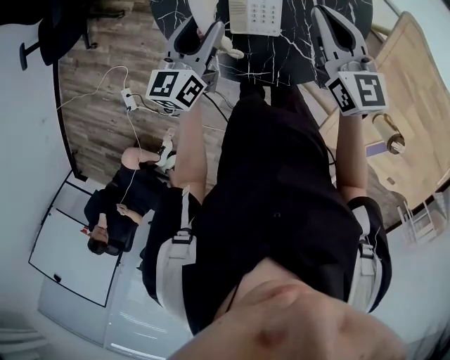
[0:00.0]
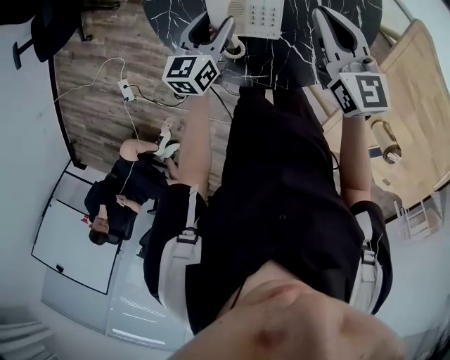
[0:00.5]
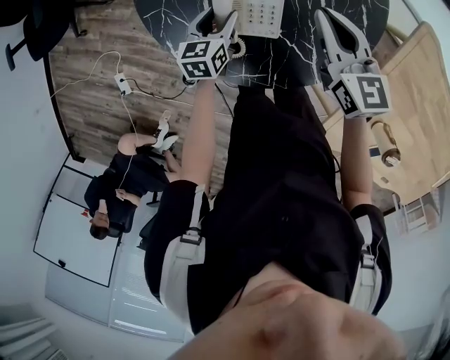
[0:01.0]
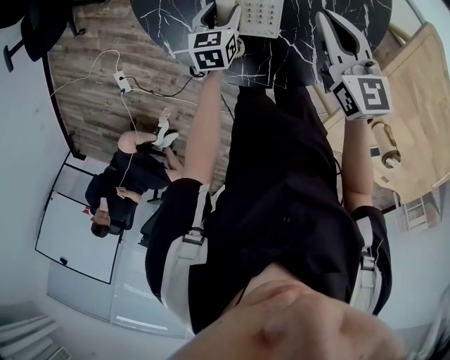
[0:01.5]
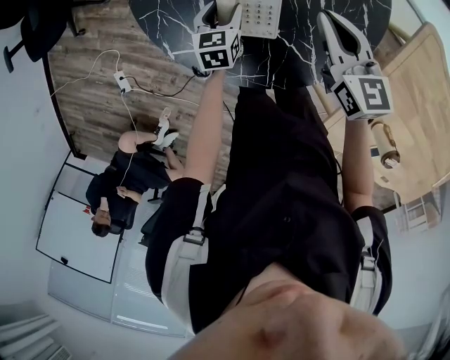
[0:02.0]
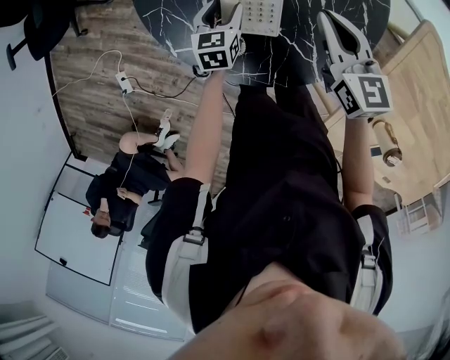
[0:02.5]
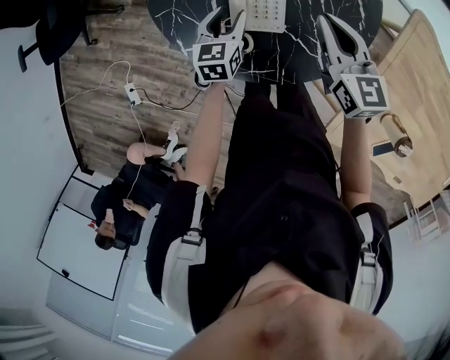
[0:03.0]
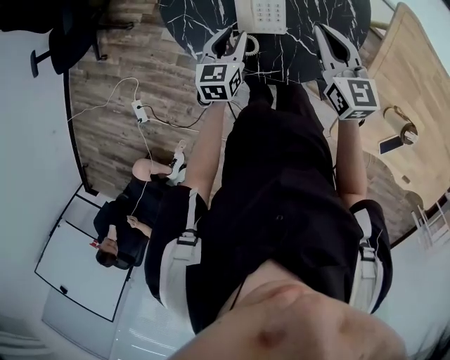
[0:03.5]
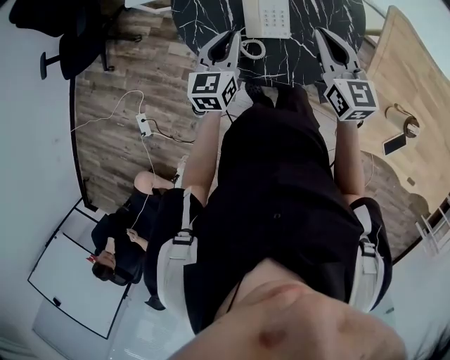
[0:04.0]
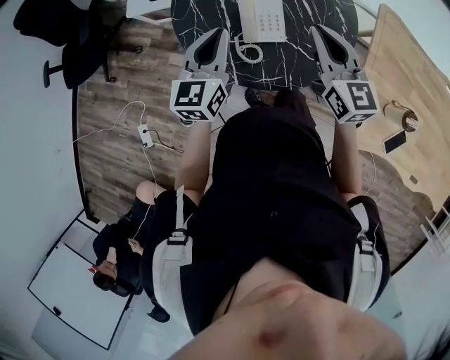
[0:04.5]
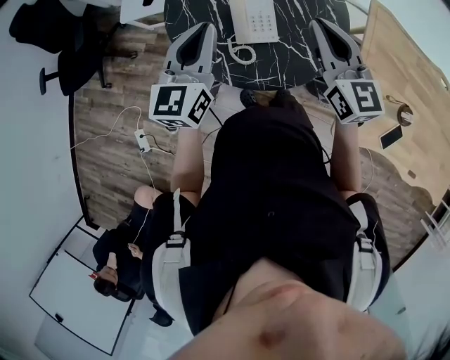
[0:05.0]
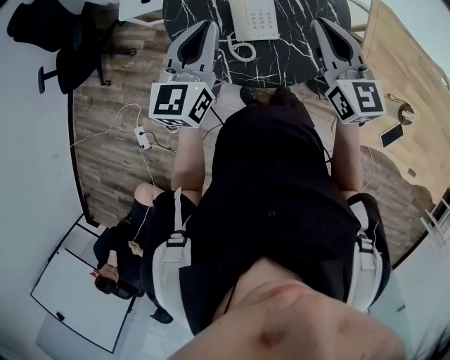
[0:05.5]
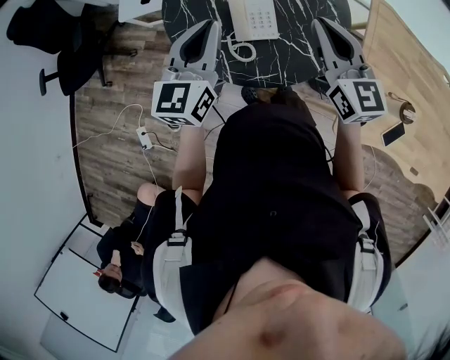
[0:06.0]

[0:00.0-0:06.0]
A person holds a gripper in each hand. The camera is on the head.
0:00.0 to 0:02.0: The right gripper shifts about 10 cm downward. Meanwhile the left gripper goes approximately 25 cm downward, and angles its fingers downward, by roughly 30 degrees.
0:02.0 to 0:04.0: The left gripper shifts roughly 25 cm upward and backward, turns by roughly 30 degrees, and closes. Meanwhile the right gripper heads backward, upward and to the left, covering roughly 20 cm.
0:04.0 to 0:06.0: The left gripper is displaced upward by about 15 cm, while the right gripper goes approximately 10 cm upward.

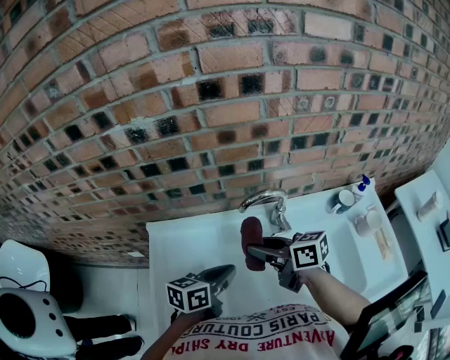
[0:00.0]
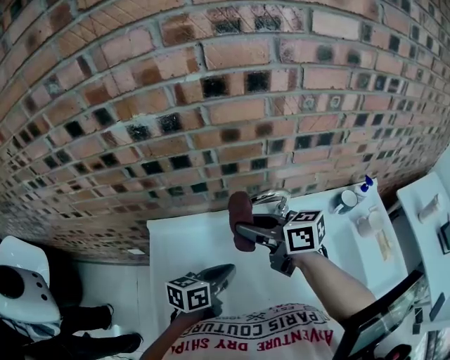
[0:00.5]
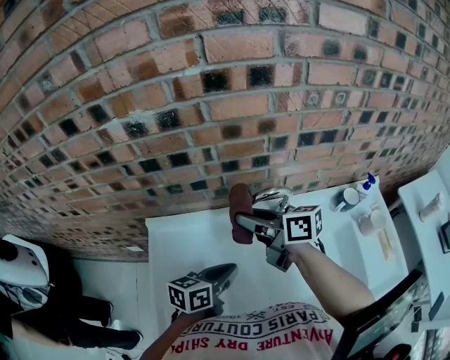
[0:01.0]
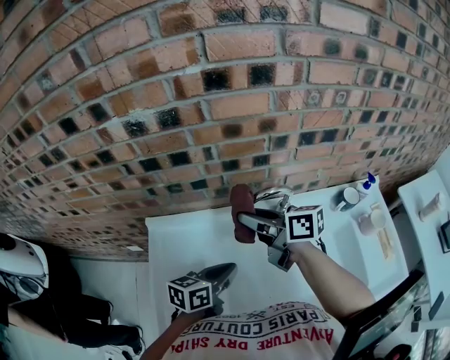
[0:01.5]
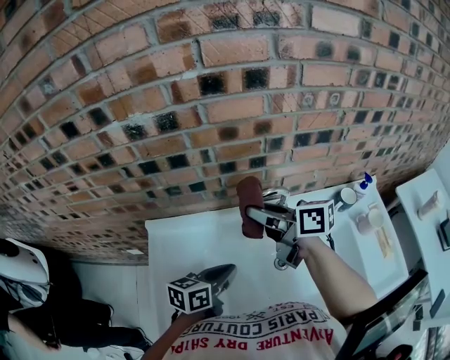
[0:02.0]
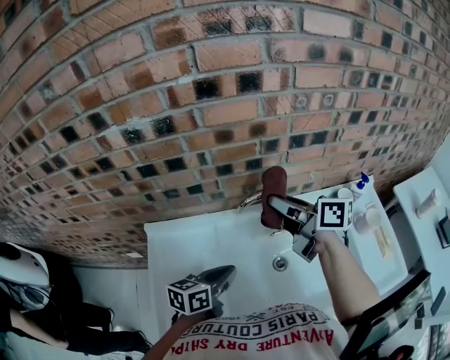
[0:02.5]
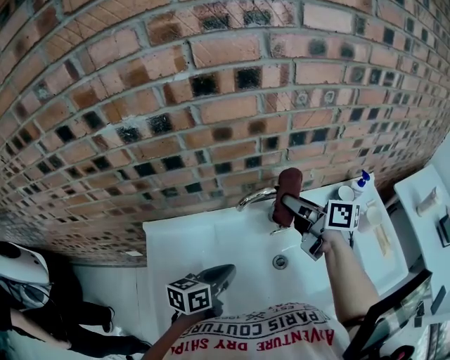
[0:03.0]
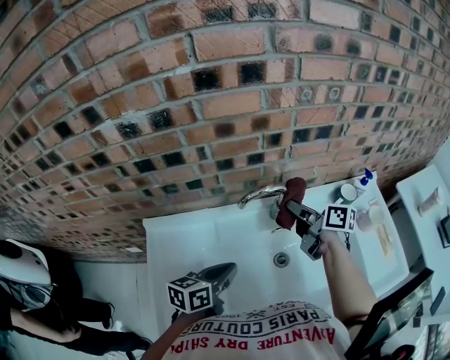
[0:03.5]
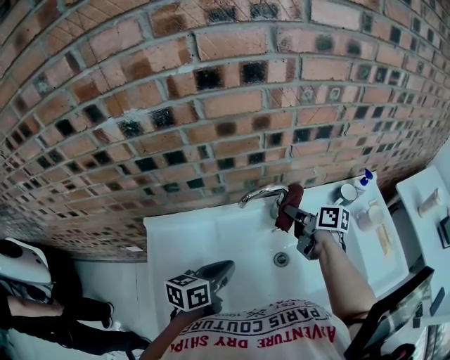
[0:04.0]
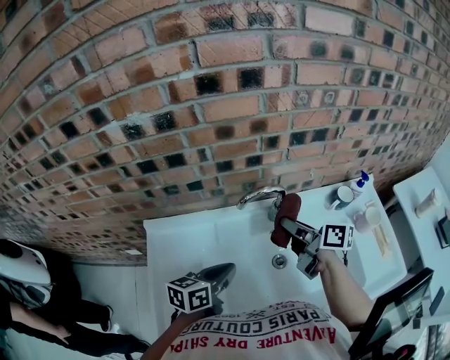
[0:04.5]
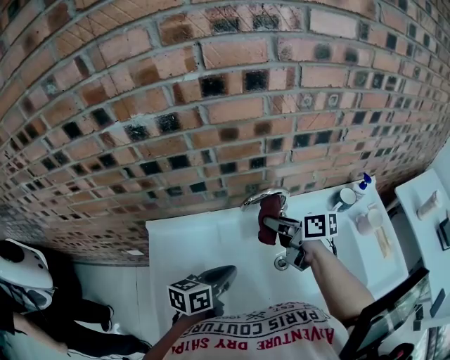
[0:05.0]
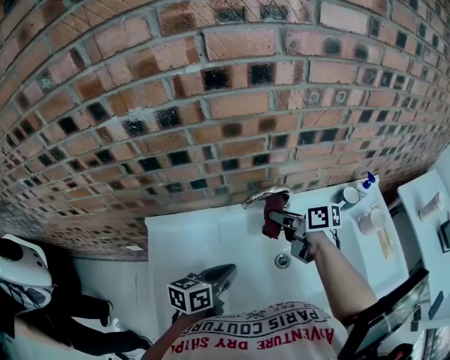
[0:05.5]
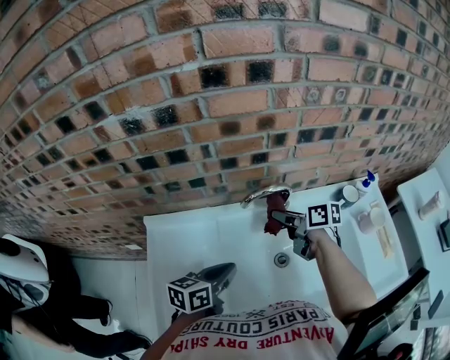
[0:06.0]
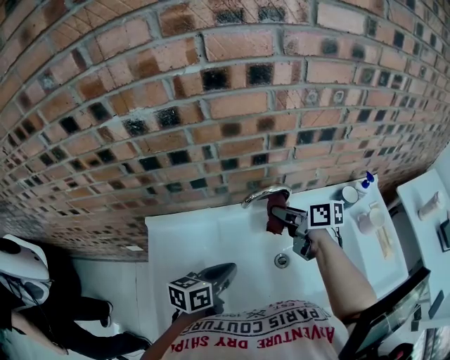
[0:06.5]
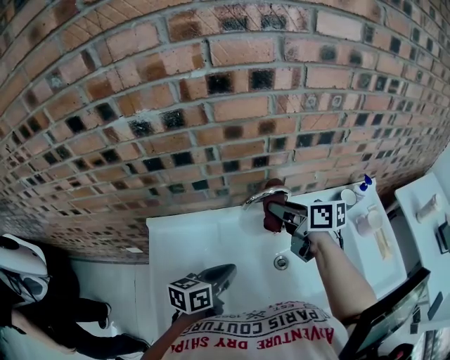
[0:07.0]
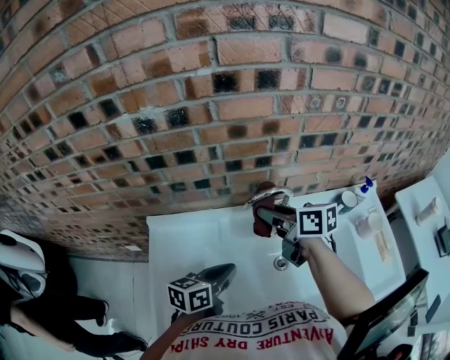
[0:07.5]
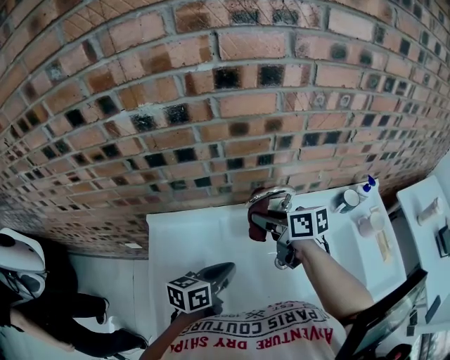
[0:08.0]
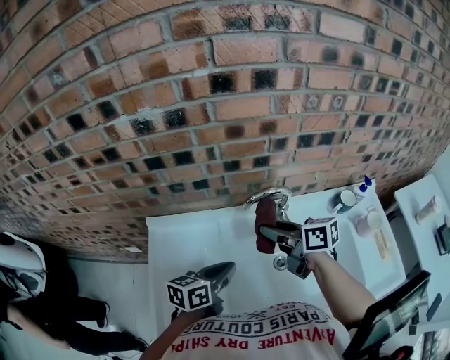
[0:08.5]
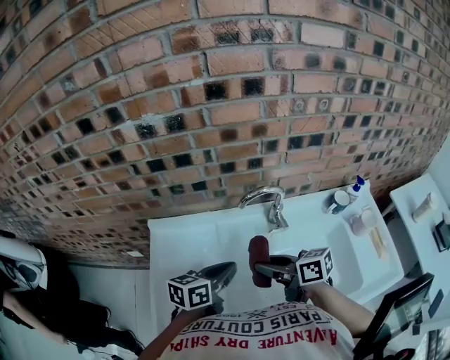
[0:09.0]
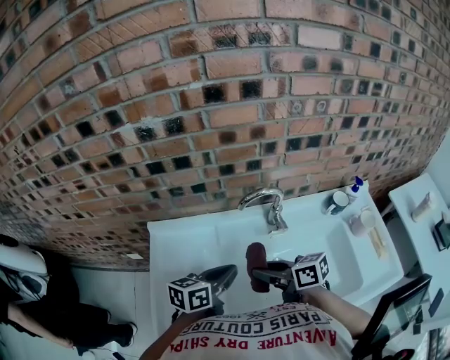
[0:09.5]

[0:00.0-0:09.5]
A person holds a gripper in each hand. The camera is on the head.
0:00.0 to 0:02.0: The right gripper goes about 10 cm upward and forward.
0:02.0 to 0:04.0: The right gripper goes some 20 cm downward and to the right, and rotates roughly 30 degrees.
0:04.0 to 0:05.5: The right gripper moves to the left, about 5 cm.
0:05.5 to 0:07.5: The right gripper shifts approximately 5 cm upward.
0:07.5 to 0:09.5: The right gripper goes about 15 cm backward and downward.

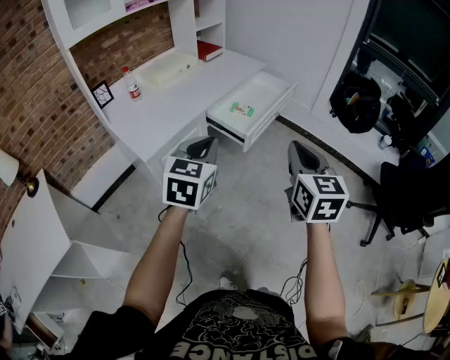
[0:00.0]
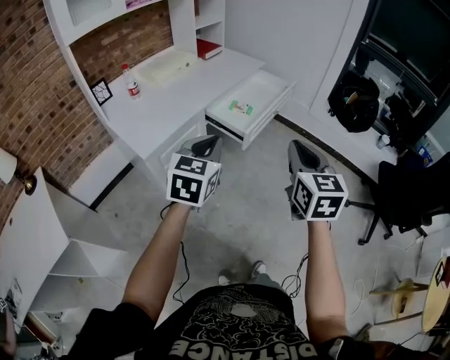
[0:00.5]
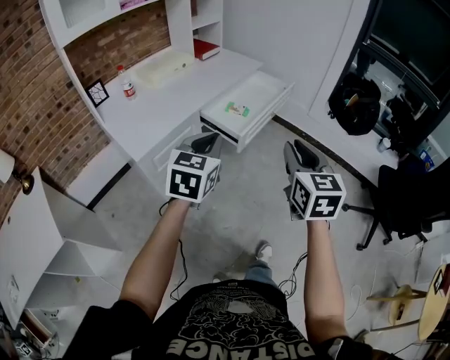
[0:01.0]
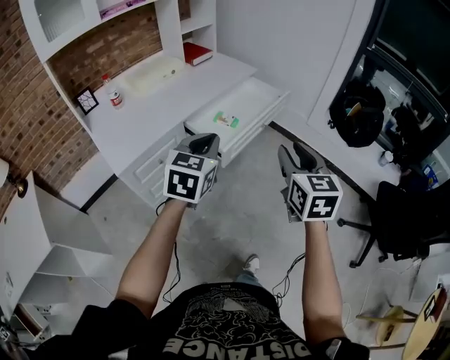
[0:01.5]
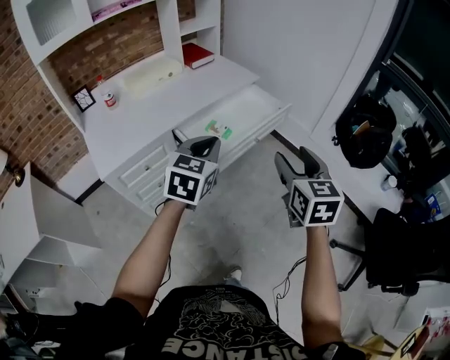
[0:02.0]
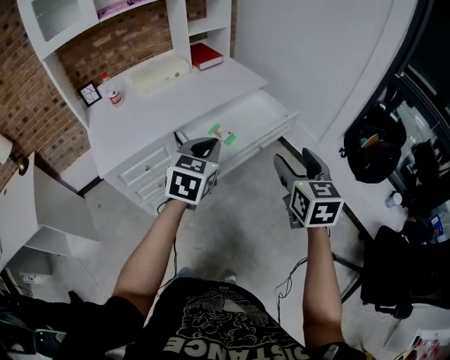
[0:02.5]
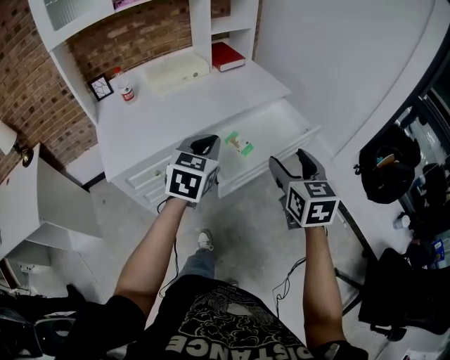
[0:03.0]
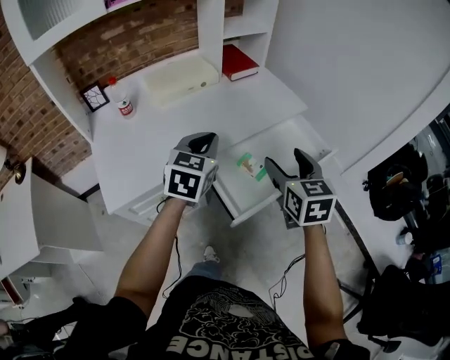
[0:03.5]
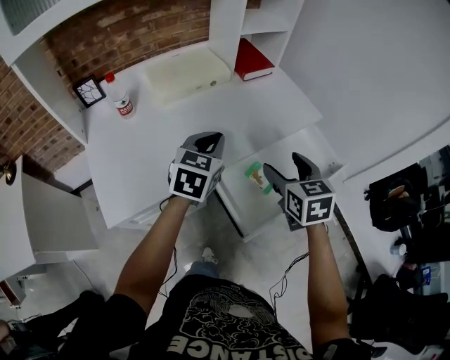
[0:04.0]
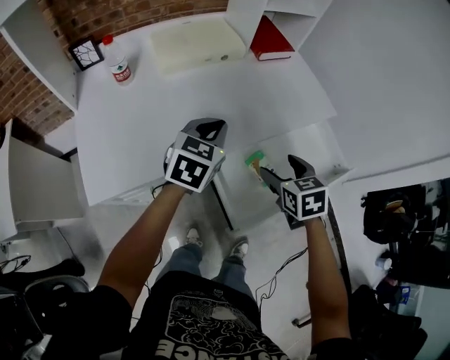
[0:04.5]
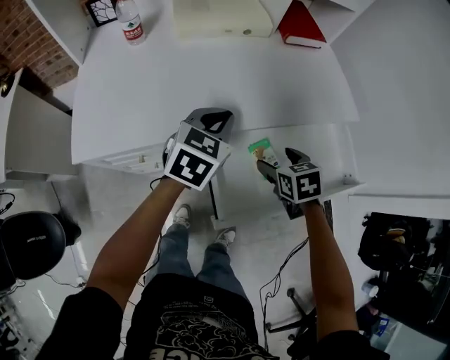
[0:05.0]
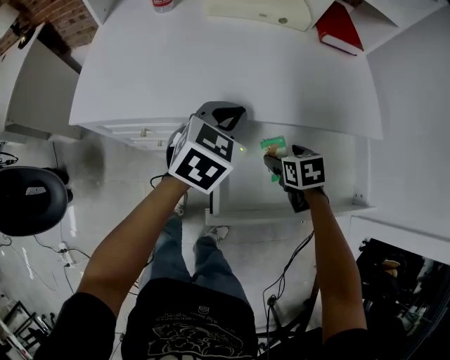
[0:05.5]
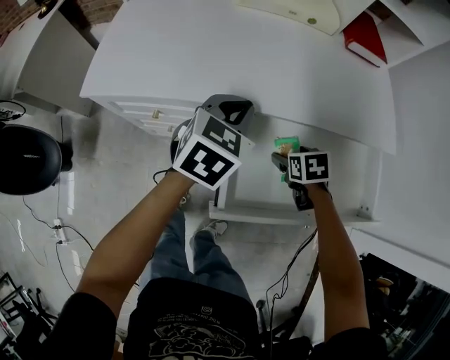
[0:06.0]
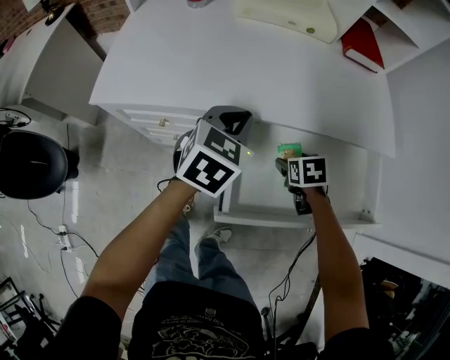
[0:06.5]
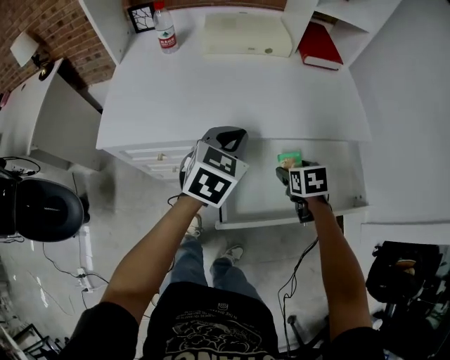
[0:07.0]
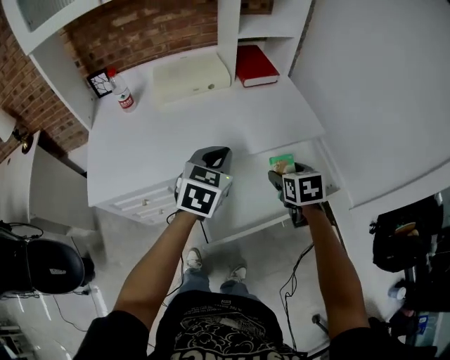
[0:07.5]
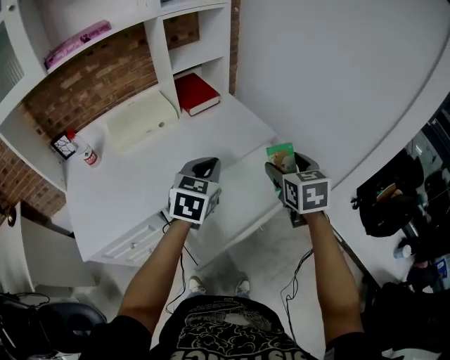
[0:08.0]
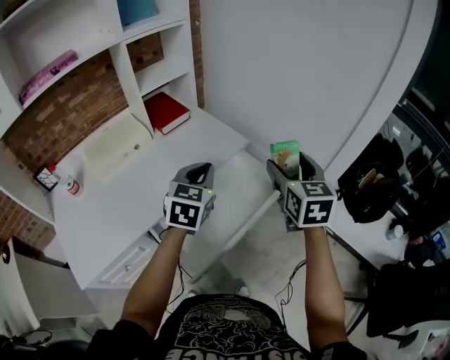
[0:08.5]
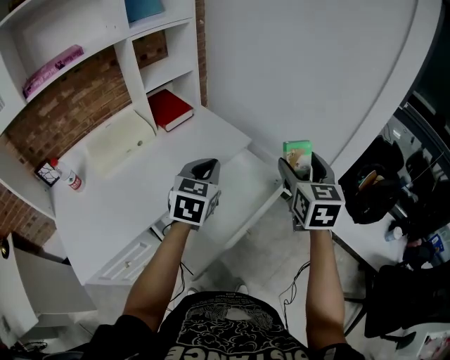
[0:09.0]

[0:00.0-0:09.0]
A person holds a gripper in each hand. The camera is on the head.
0:00.0 to 0:02.0: The grippers both shift forward and to the right by some 25 cm. The right gripper opens.
0:02.0 to 0:04.5: The left gripper is displaced forward and to the left by approximately 40 cm. The right gripper travels forward, to the left and downward by some 50 cm, and tilts its fingers roughly 30 degrees downward.
0:04.5 to 0:07.0: The right gripper shifts some 10 cm downward, while the left gripper reaches approximately 10 cm downward, then returns.
0:07.0 to 0:09.0: The right gripper moves upward, approximately 35 cm, and tilts its fingers approximately 50 degrees upward. Meanwhile the left gripper moves approximately 25 cm, and changes its angle by about 30 degrees.

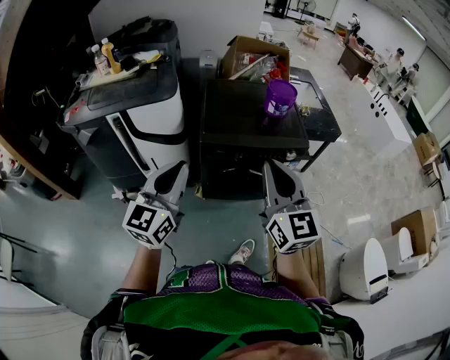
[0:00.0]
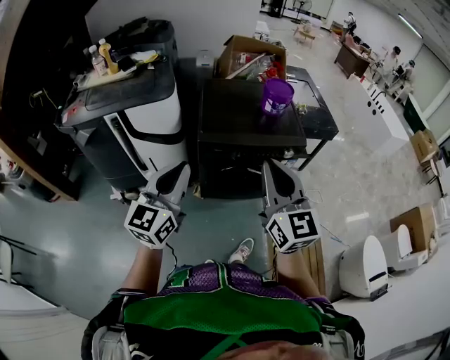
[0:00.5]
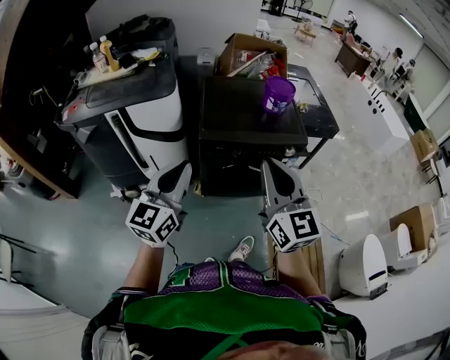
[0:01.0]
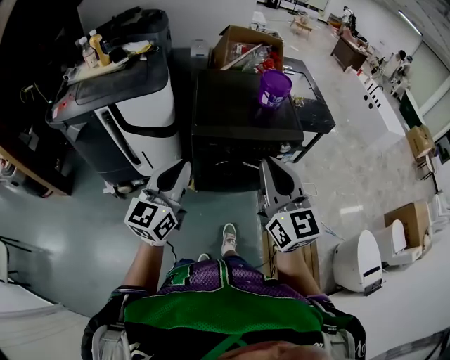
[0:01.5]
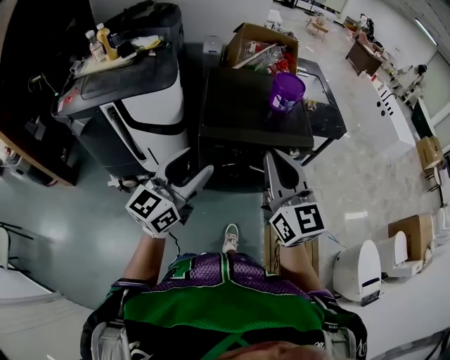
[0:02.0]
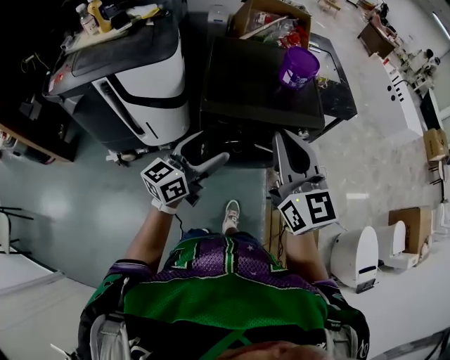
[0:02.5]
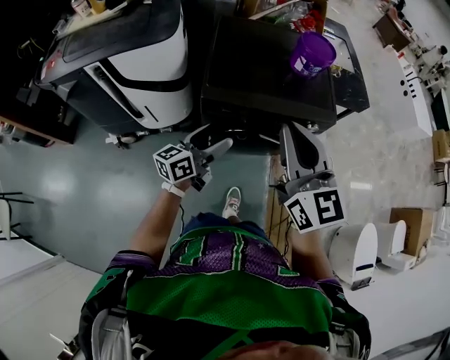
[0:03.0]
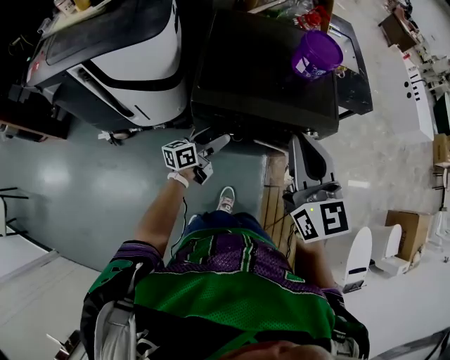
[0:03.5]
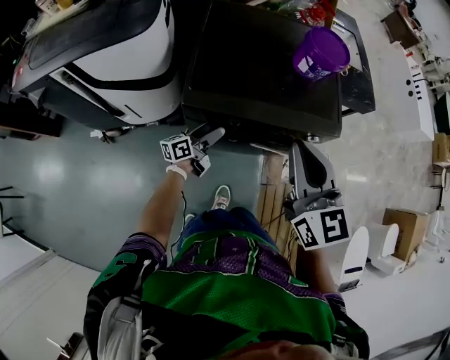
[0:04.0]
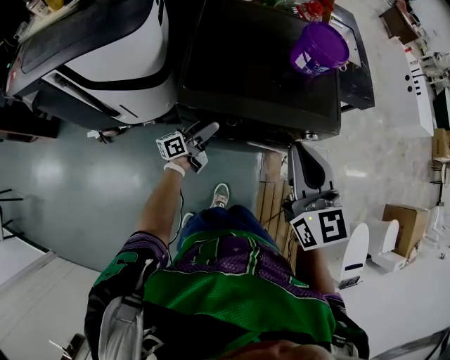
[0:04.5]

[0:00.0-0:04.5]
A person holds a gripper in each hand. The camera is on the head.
0:00.0 to 0:02.0: The grippers both shift forward by roughly 5 cm. The left gripper opens its fingers.
0:02.0 to 0:04.5: The right gripper heads forward and downward, covering some 25 cm. The left gripper moves downward and forward, roughly 50 cm, rolls counterclockwise, seen from behind, by roughly 50 degrees, and opens its fingers.
